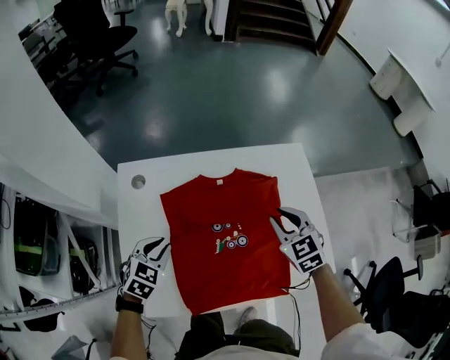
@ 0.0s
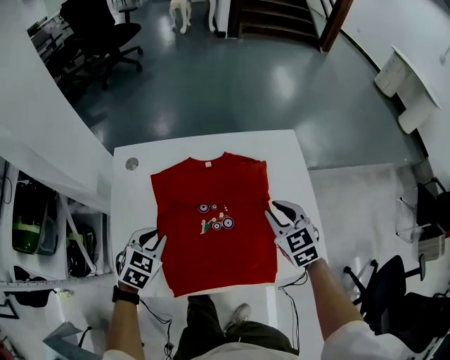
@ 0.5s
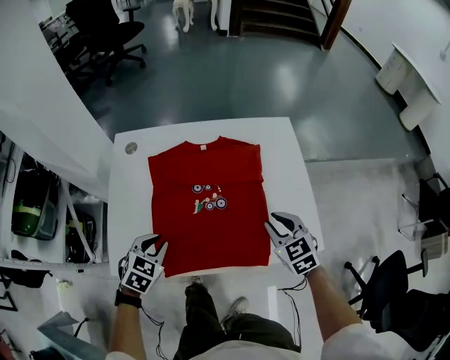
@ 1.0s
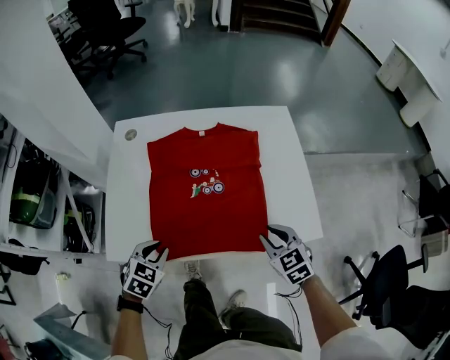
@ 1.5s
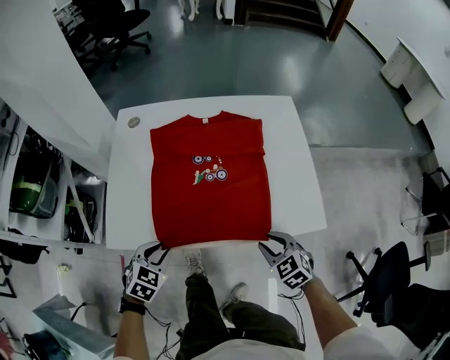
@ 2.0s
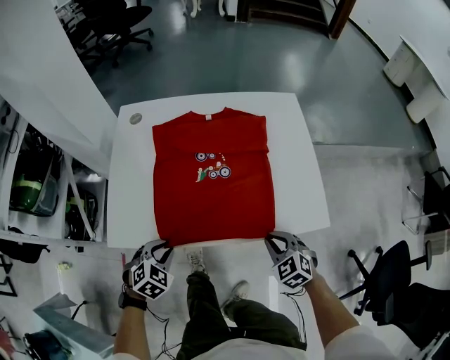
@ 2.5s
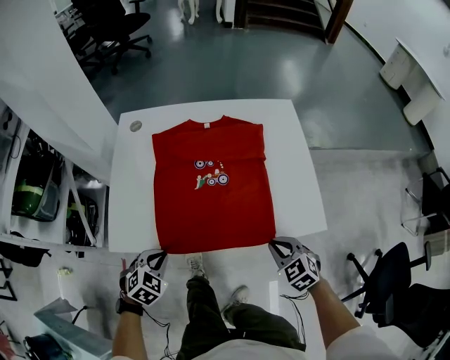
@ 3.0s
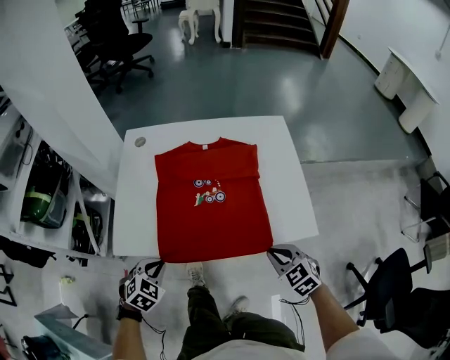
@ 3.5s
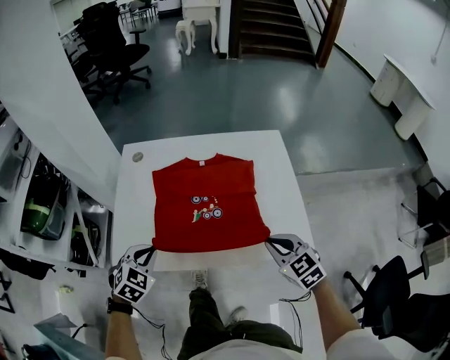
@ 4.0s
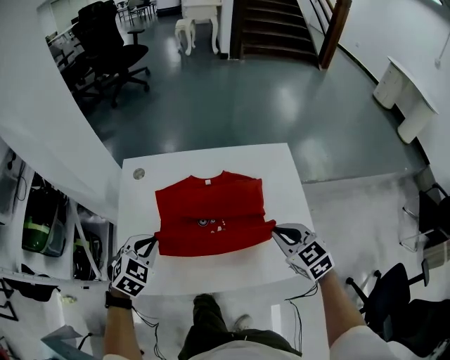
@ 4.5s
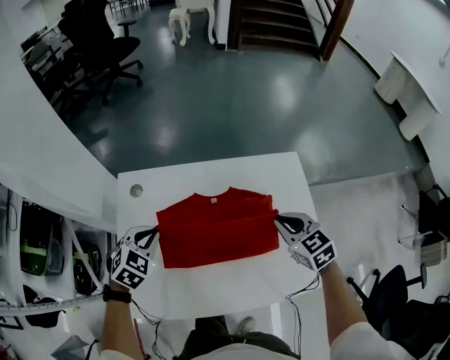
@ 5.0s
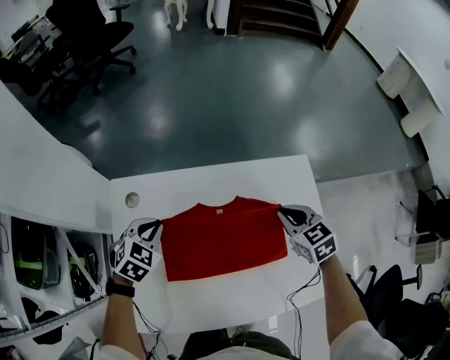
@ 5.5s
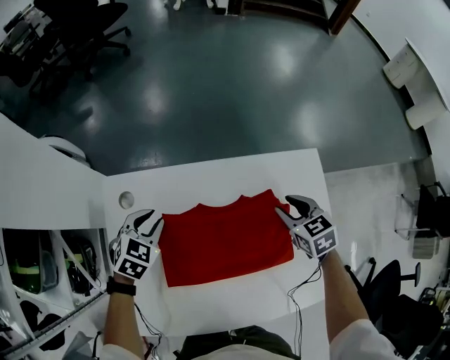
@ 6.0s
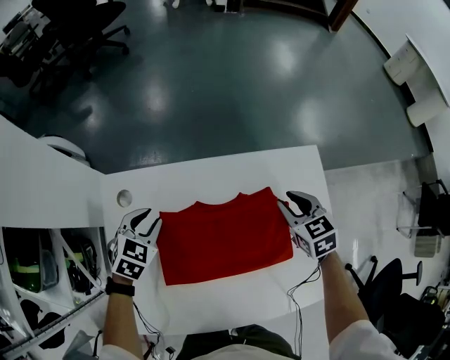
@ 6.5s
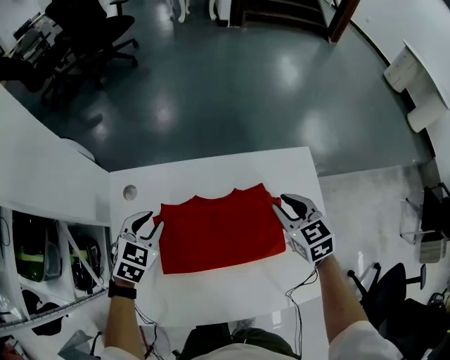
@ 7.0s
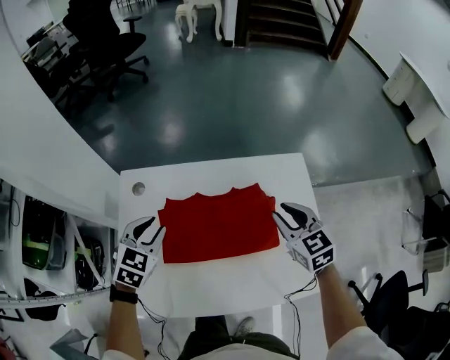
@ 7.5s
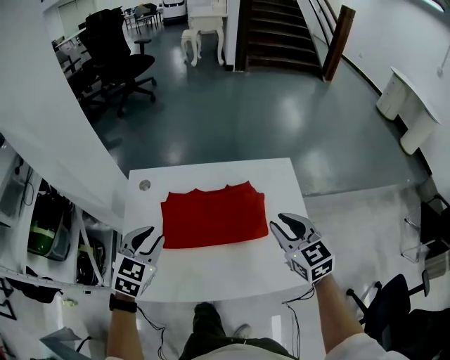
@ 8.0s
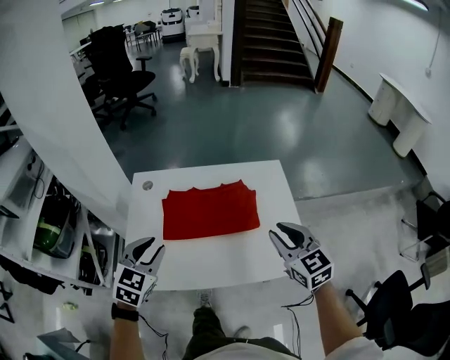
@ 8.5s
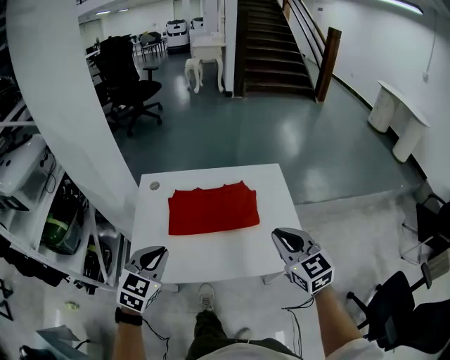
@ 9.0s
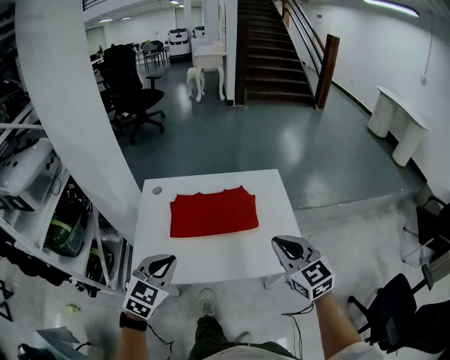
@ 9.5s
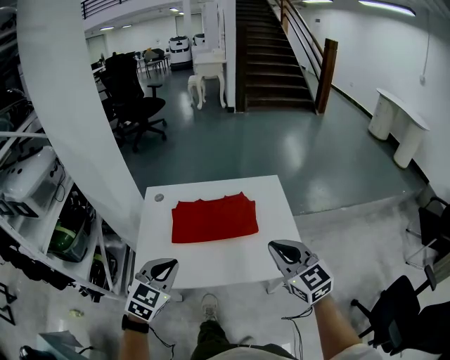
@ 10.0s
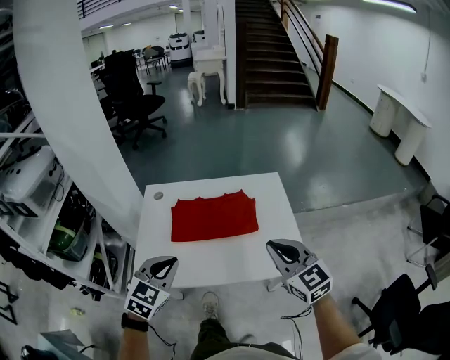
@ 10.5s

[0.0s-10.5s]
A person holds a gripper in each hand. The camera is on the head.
0.0s to 2.0s: The left gripper moves backward, roughly 25 cm. The right gripper shifts about 30 cm backward and downward.
2.0s to 4.0s: The right gripper goes some 15 cm upward. The left gripper moves upward and forward, approximately 10 cm.
4.0s to 6.5s: The two grippers go roughly 35 cm forward. The left gripper opens up.
6.5s to 8.5s: Both grippers travel together backward and upward, roughly 35 cm. The right gripper swivels some 30 degrees, while the left gripper changes its angle by roughly 20 degrees.
8.5s to 10.5s: The right gripper goes approximately 10 cm backward. The left gripper is displaced backward and to the right by roughly 10 cm, and closes its fingers.

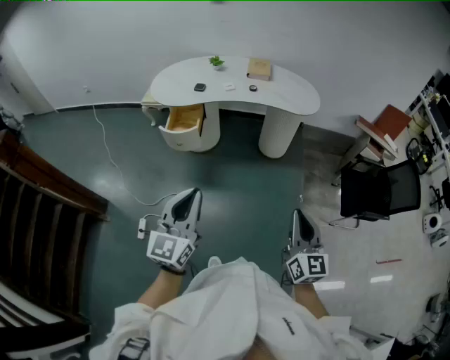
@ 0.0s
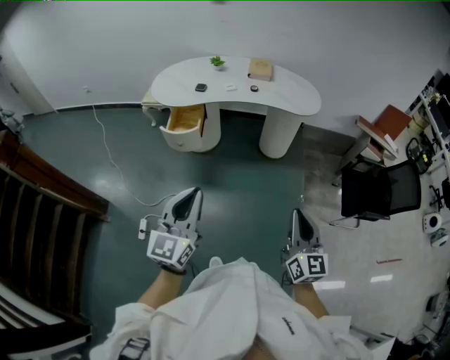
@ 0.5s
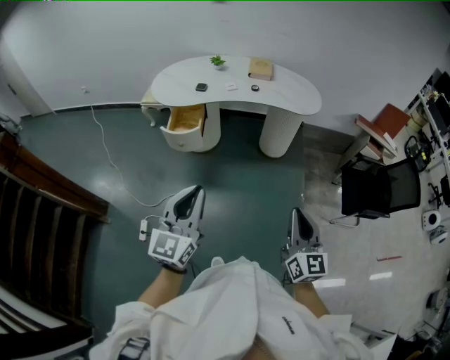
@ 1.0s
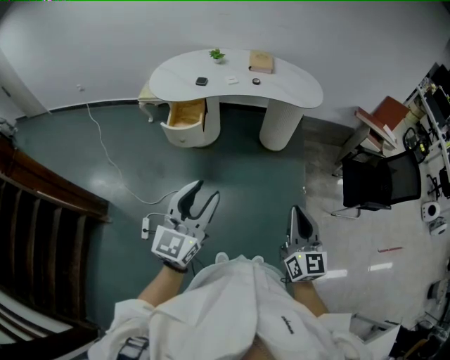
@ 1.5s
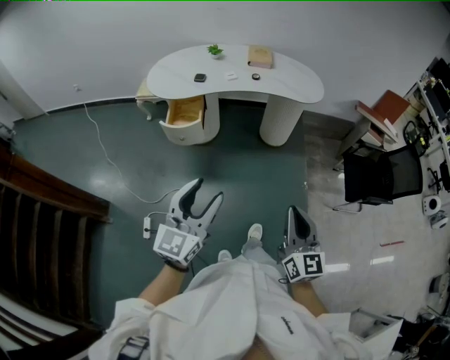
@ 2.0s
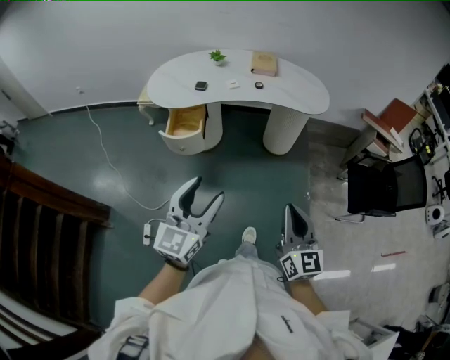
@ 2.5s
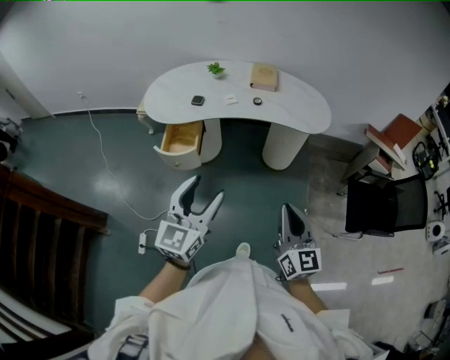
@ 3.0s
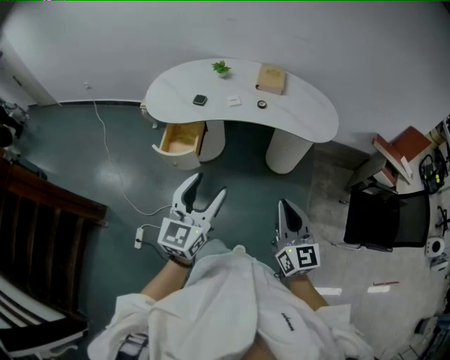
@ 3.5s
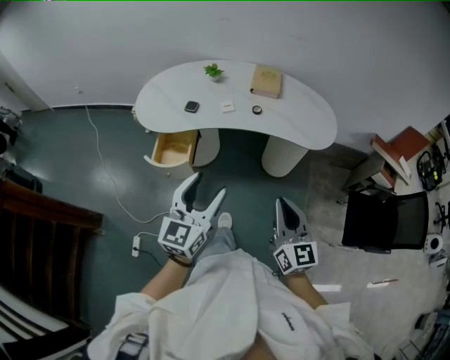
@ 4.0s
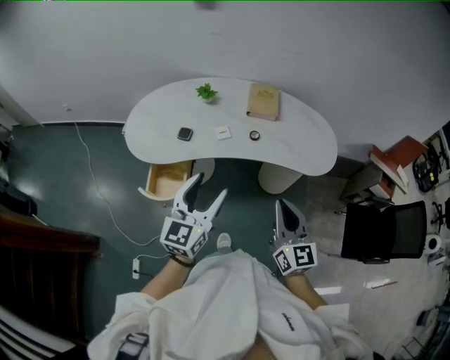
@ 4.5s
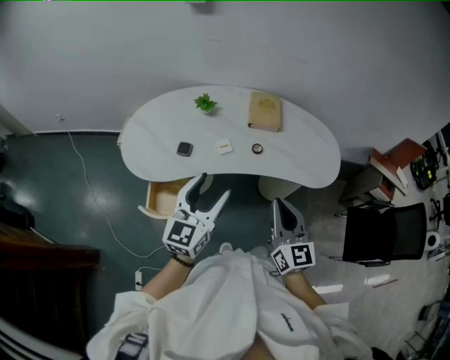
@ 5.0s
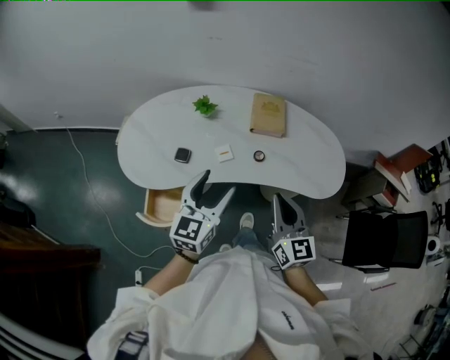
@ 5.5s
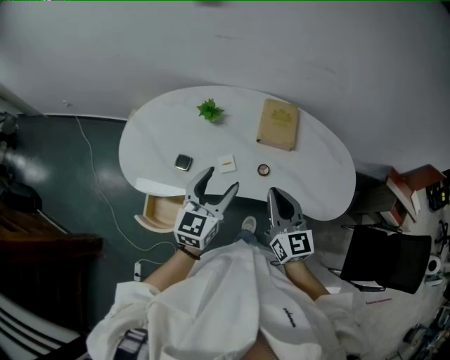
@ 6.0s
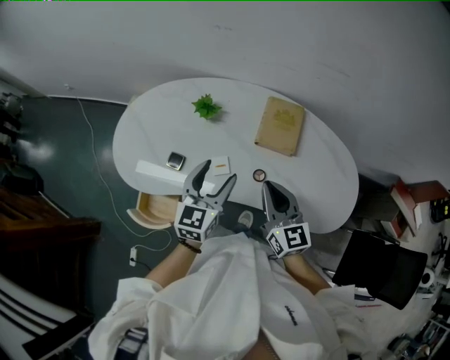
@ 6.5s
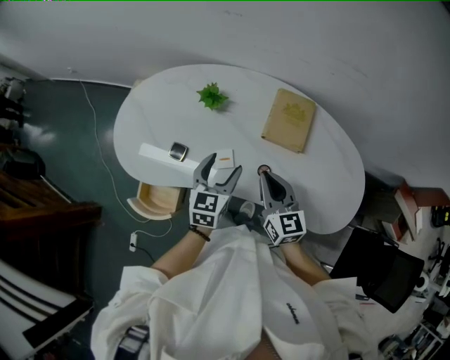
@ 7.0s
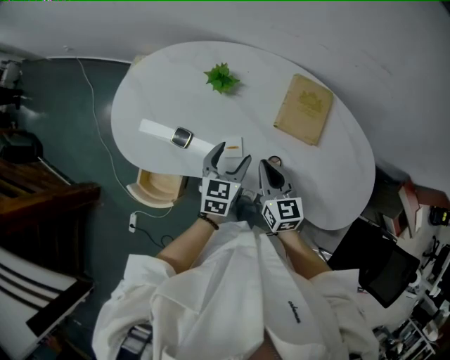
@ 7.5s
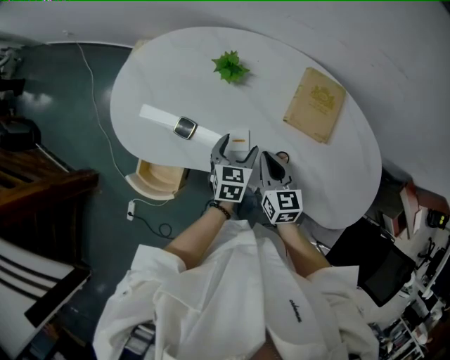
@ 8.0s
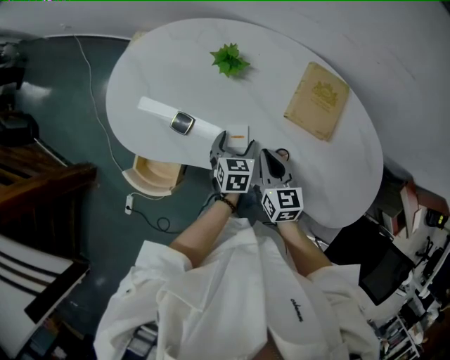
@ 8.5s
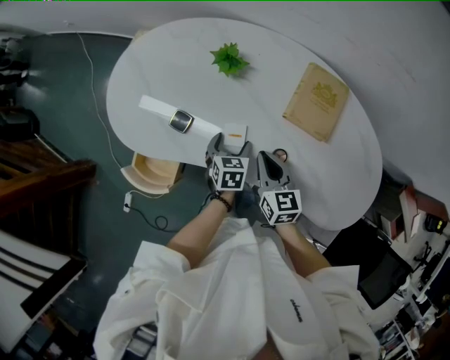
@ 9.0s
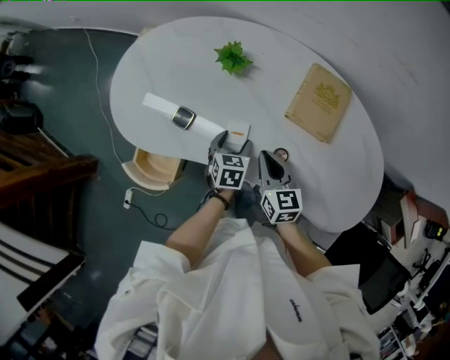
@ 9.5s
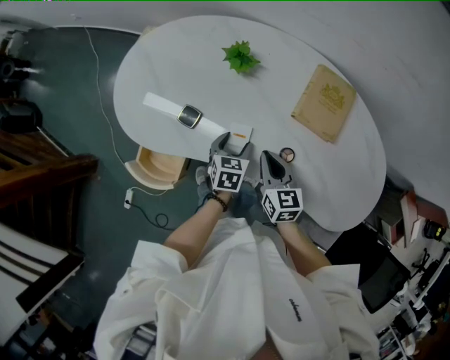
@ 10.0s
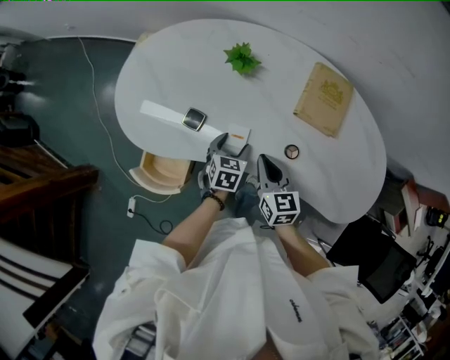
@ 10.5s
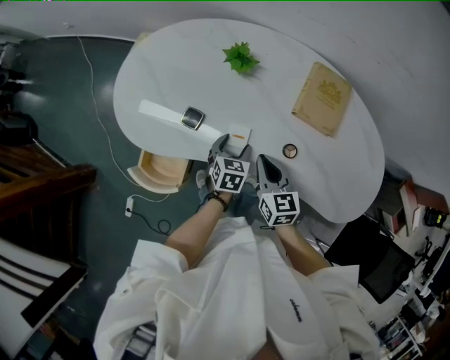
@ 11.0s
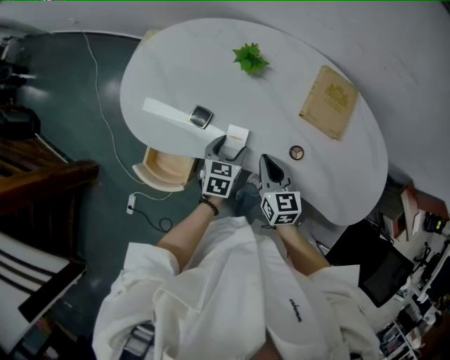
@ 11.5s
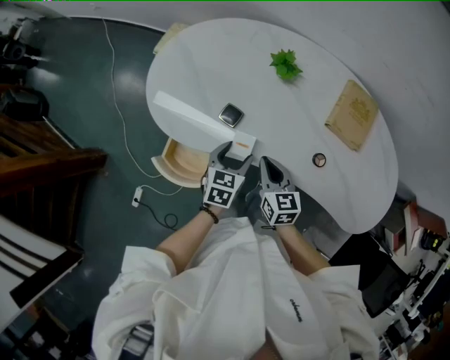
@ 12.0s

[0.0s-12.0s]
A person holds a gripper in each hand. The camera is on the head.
0.0s to 2.0s: The right gripper goes about 10 cm to the left. The left gripper opens its fingers.
2.0s to 4.0s: The grippers both shift forward by approximately 35 cm.
4.0s to 6.0s: The two grippers travel together, forward, some 40 cm.
6.0s to 8.0s: Both grippers move downward and forward, roughly 25 cm. The left gripper swivels roughly 40 degrees. Meanwhile the right gripper changes its angle by about 20 degrees.
8.0s to 10.0s: The left gripper shifts some 5 cm downward.
10.0s to 12.0s: The right gripper shifts roughly 15 cm to the left, while the left gripper travels to the left and upward by about 15 cm.

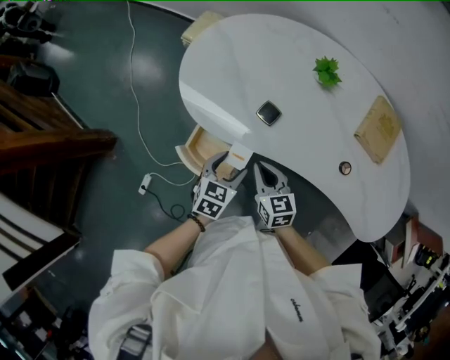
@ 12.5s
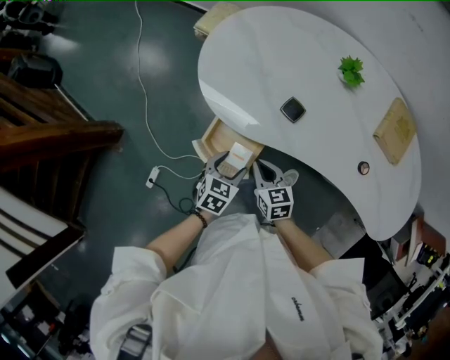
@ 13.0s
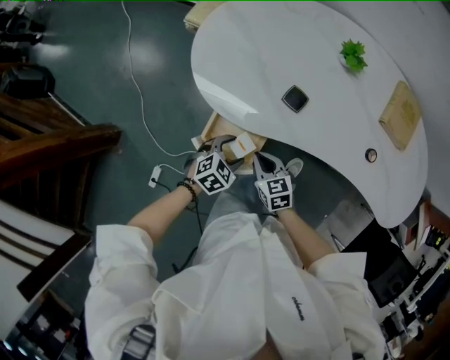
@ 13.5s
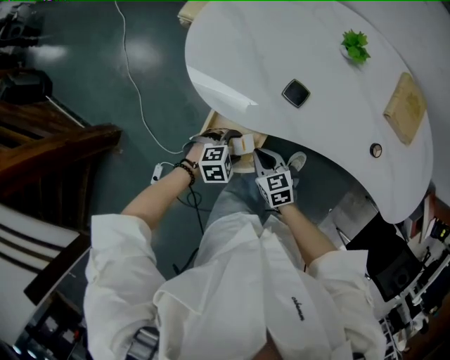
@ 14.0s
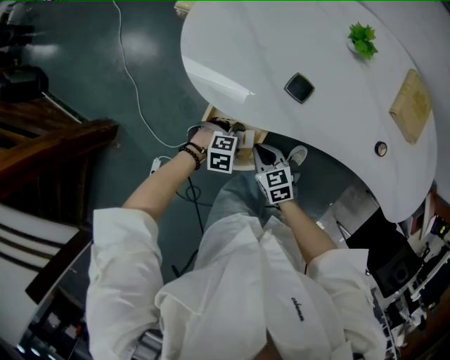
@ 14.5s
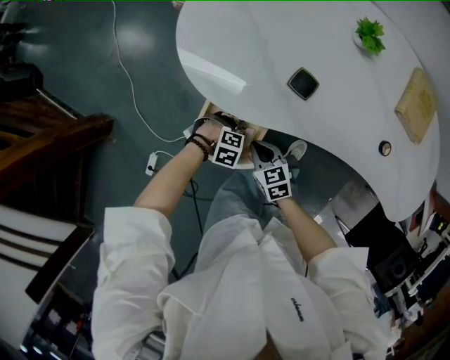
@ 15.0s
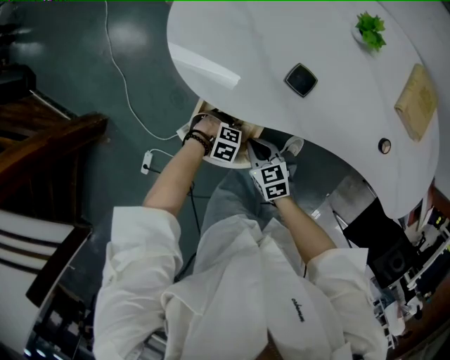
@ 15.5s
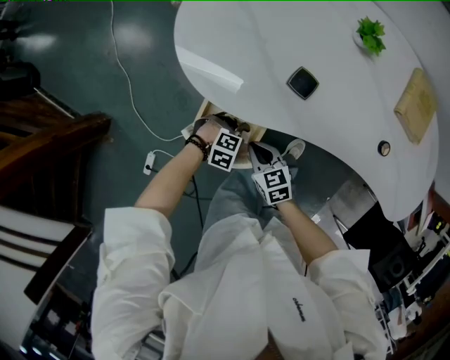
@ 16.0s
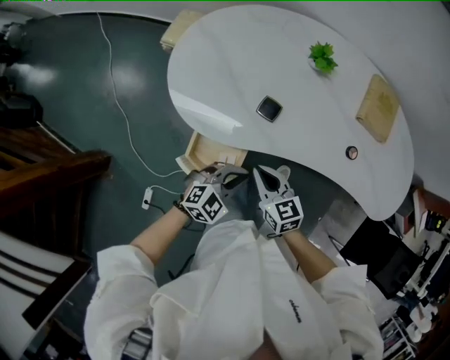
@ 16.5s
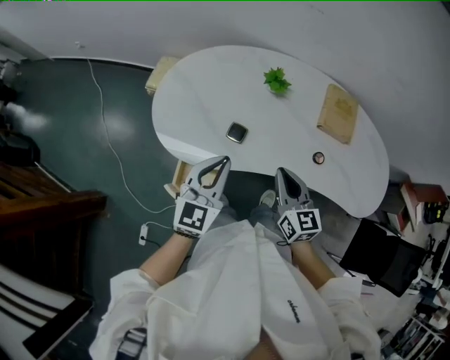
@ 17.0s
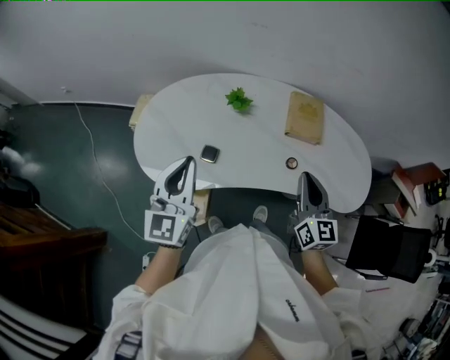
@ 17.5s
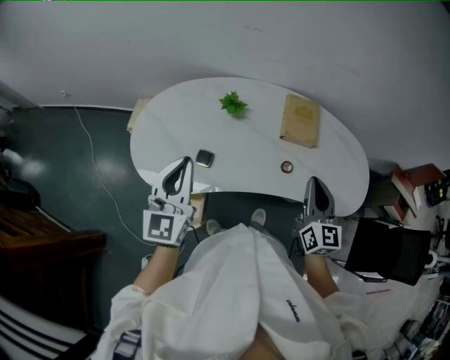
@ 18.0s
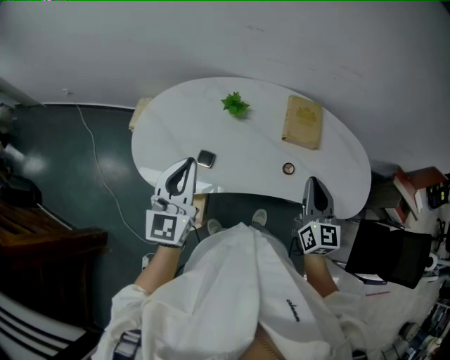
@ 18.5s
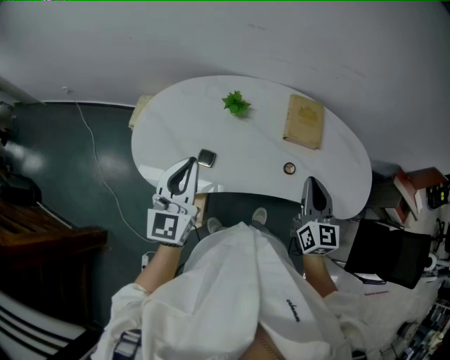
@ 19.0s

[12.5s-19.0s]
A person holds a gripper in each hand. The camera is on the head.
12.5s to 14.5s: The grippers both shift downward by some 15 cm. The left gripper changes its angle by approximately 80 degrees.
14.5s to 17.0s: Both grippers travel together upward, some 35 cm. The right gripper rotates approximately 40 degrees, while the left gripper tips its fingers upward by approximately 60 degrees, and closes its fingers.
17.0s to 19.0s: The right gripper shifts roughly 20 cm to the right and upward, and rotates some 20 degrees; the left gripper goes some 10 cm upward.
